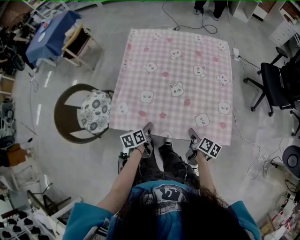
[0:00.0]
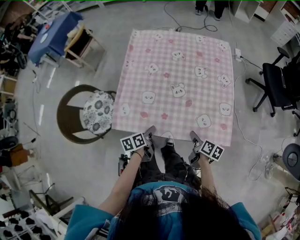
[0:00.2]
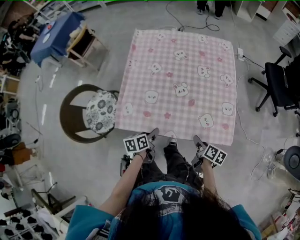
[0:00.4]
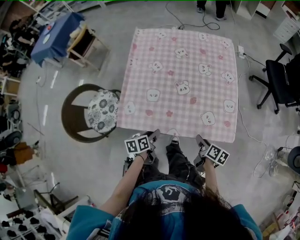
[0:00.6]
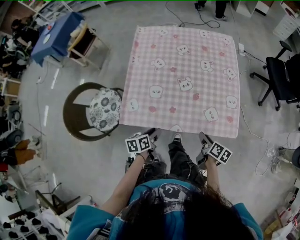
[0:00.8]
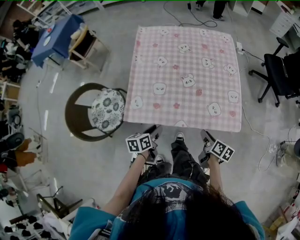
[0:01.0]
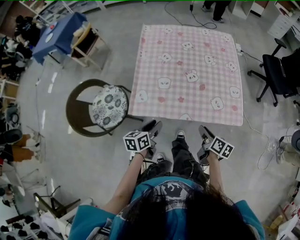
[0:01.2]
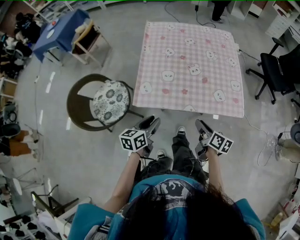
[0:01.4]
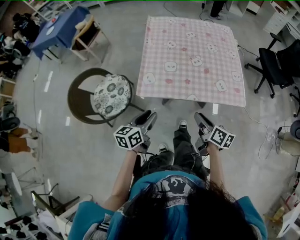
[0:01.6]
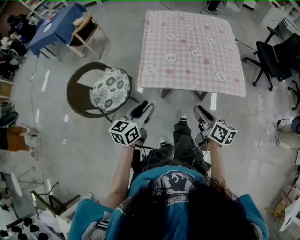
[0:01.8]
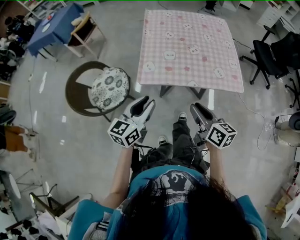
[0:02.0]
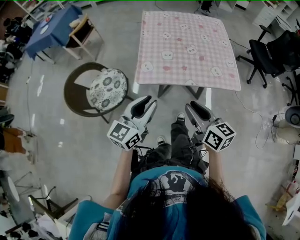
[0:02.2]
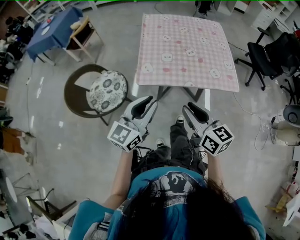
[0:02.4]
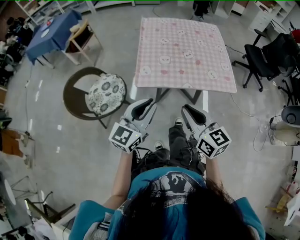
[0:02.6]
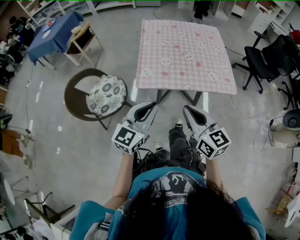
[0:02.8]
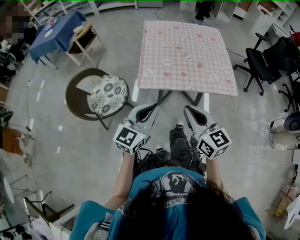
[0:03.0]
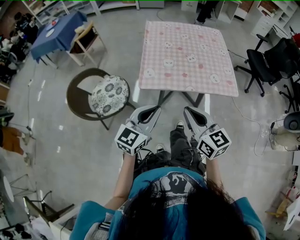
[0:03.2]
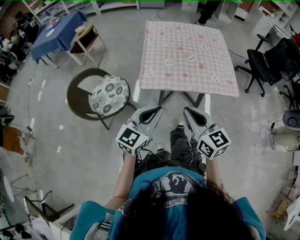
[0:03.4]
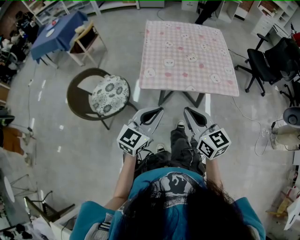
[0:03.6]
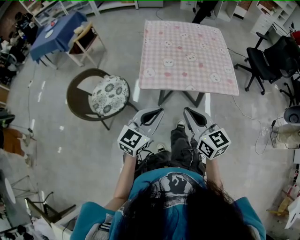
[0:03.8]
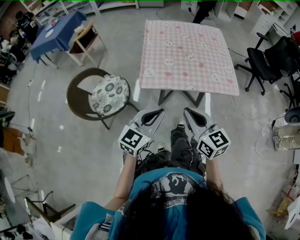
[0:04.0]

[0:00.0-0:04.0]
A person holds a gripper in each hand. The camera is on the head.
0:00.0 to 0:01.4: The left gripper is displaced upward, backward and to the left by approximately 20 cm, swivels about 30 degrees, and opens up. Meanwhile the right gripper moves backward, to the left and upward, about 15 cm, and opens up.
0:01.4 to 0:02.6: The right gripper shifts approximately 25 cm upward, backward and to the left, rotates around the line of its fingers by roughly 40 degrees, counterclockwise from behind, and closes, while the left gripper travels upward and backward by about 20 cm, and rotates about 40 degrees.
0:02.6 to 0:04.0: There are only small adjustments of the grippers.

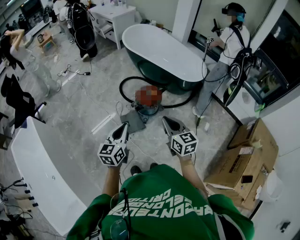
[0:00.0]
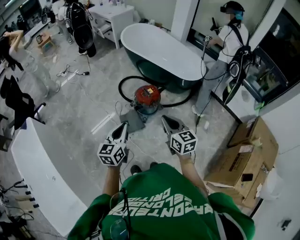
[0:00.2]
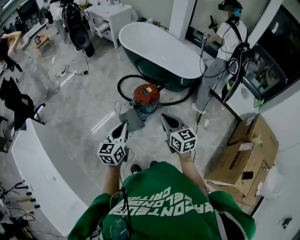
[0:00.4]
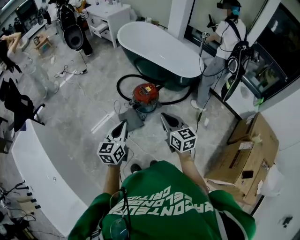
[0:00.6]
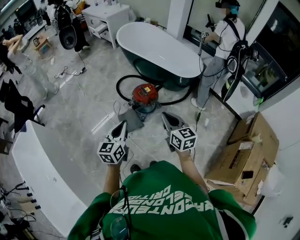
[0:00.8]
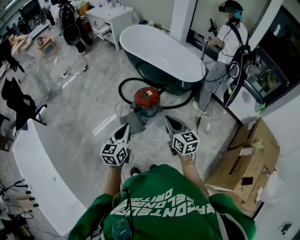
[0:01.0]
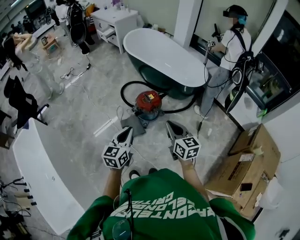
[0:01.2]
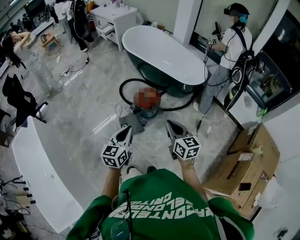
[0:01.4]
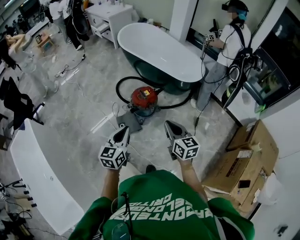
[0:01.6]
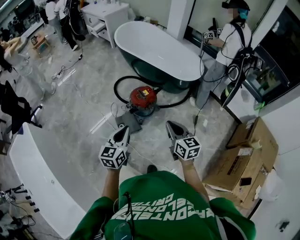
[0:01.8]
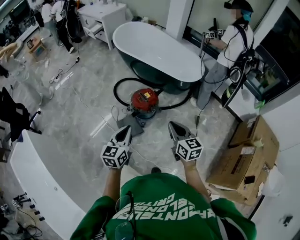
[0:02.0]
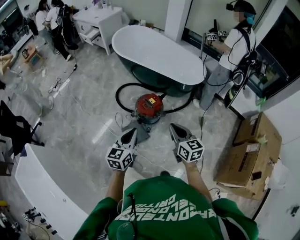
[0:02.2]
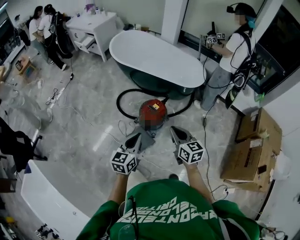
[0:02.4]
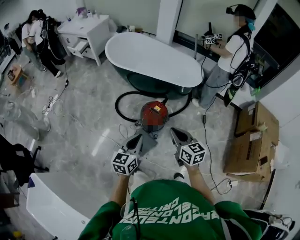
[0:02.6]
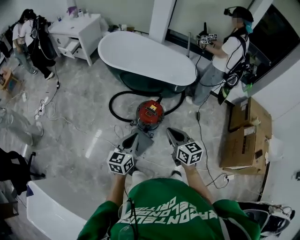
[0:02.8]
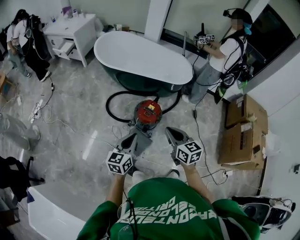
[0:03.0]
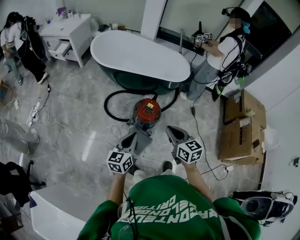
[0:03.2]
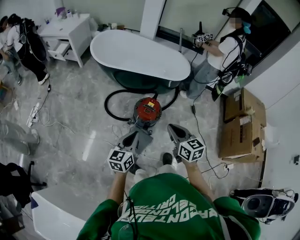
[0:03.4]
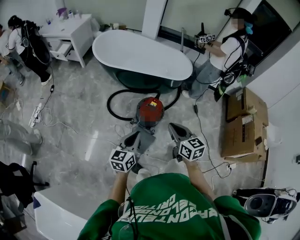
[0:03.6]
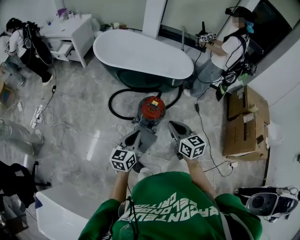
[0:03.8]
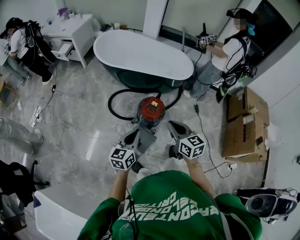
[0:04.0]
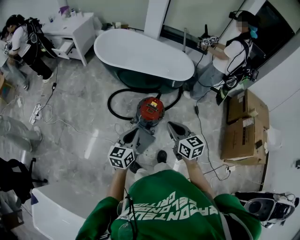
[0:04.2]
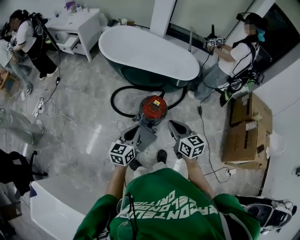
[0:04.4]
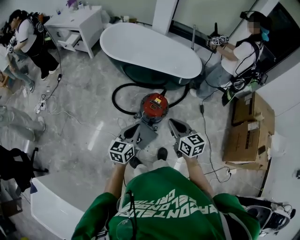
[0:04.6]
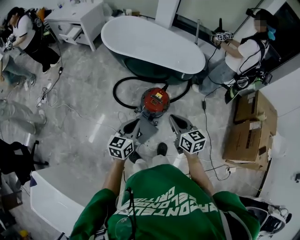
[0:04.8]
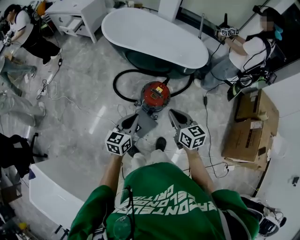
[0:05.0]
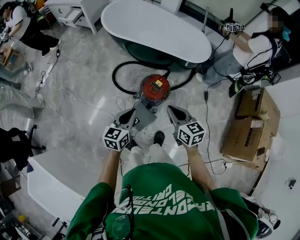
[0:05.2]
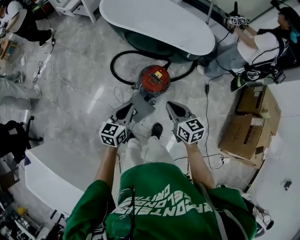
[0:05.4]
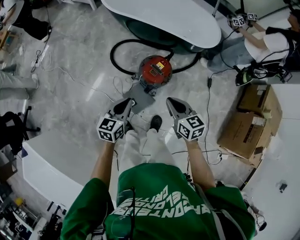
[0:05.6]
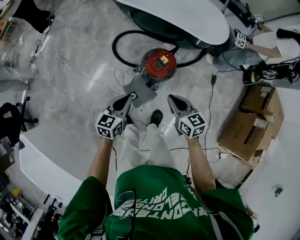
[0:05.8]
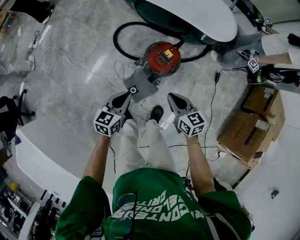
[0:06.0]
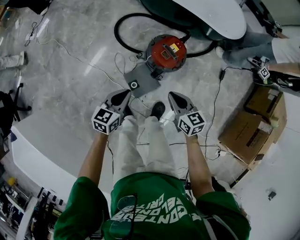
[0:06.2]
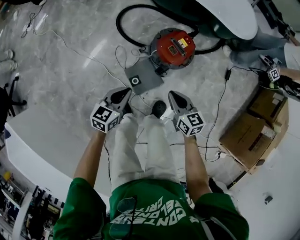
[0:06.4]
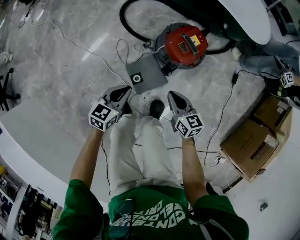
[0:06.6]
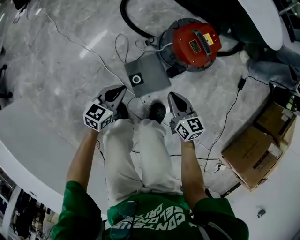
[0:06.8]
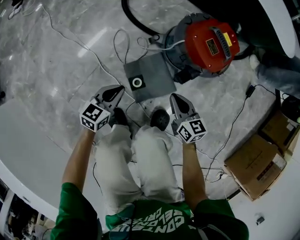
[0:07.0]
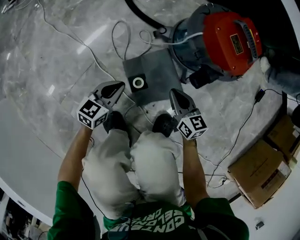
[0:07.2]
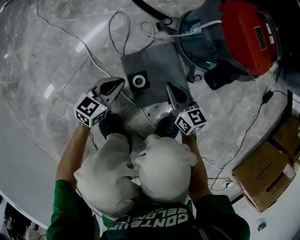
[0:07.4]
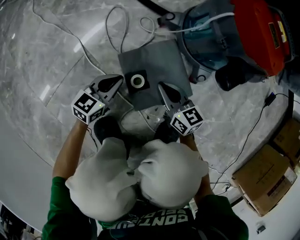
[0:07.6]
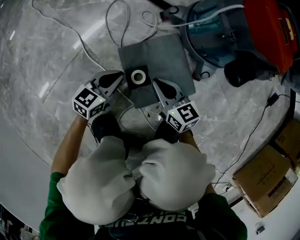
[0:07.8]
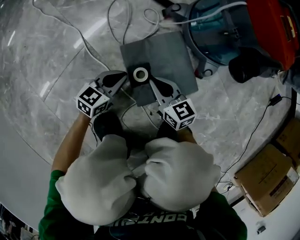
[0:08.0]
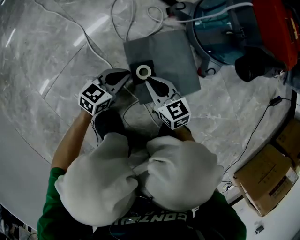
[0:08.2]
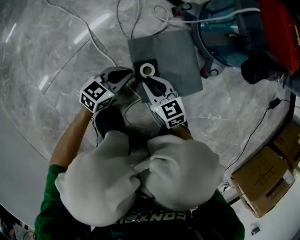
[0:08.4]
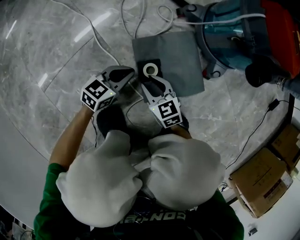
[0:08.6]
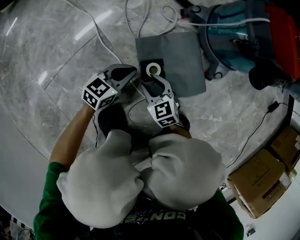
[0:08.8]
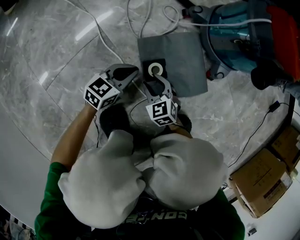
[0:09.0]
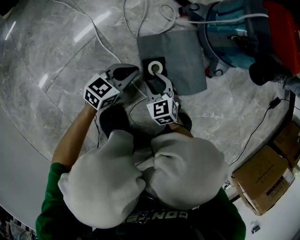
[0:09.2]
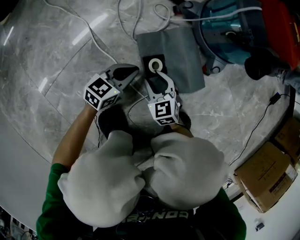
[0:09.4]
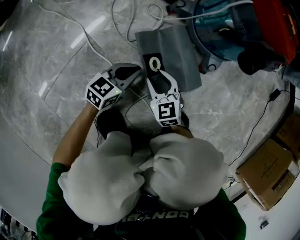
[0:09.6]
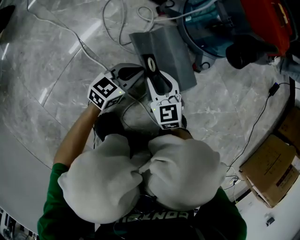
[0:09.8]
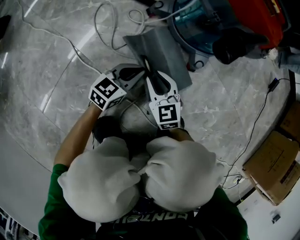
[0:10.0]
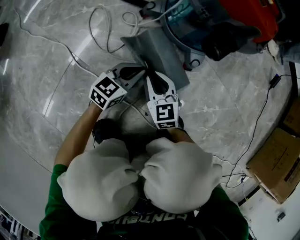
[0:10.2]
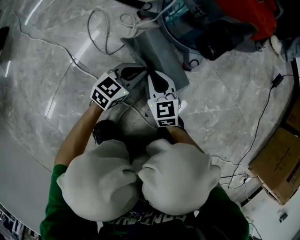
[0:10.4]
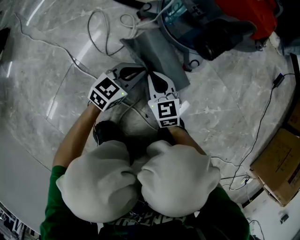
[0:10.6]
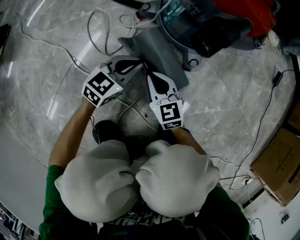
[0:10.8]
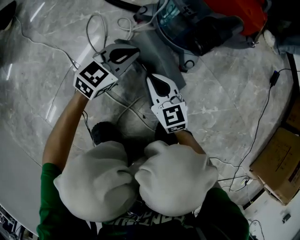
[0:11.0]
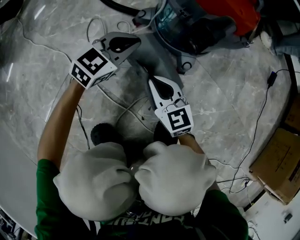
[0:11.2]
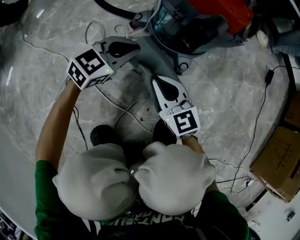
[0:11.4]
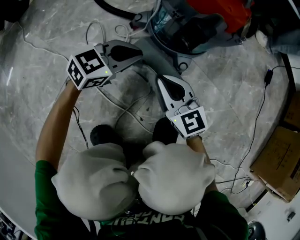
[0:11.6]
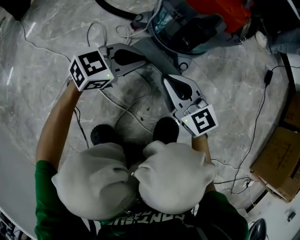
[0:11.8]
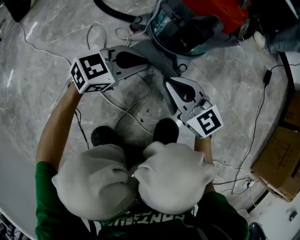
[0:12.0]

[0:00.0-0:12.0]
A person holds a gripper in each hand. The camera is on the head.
0:00.0 to 0:01.6: The grippers both shift to the right by about 5 cm.
0:01.6 to 0:03.0: The left gripper shifts by about 35 cm, and turns by approximately 30 degrees. Meanwhile the right gripper moves about 35 cm, and changes its angle by some 20 degrees.
0:03.0 to 0:04.4: The grippers move only a little.
0:04.4 to 0:06.0: Both grippers travel together downward, roughly 20 cm. The right gripper changes its angle by approximately 20 degrees.
0:06.0 to 0:07.6: Both grippers move downward, about 70 cm.
0:07.6 to 0:09.0: The left gripper travels downward by some 5 cm, while the right gripper shifts about 15 cm downward, to the left and backward, changes its angle by approximately 40 degrees, and opens.
0:09.0 to 0:10.4: The left gripper travels to the right and forward by roughly 15 cm; the right gripper is displaced forward, to the right and upward by some 15 cm, turns by roughly 30 degrees, and closes up.
0:10.4 to 0:12.0: The grippers both shift upward by some 15 cm. The left gripper turns by some 20 degrees, while the right gripper swivels some 30 degrees.

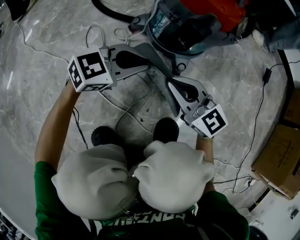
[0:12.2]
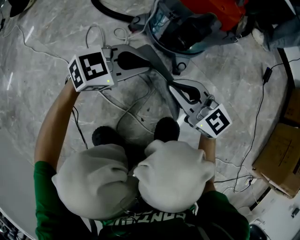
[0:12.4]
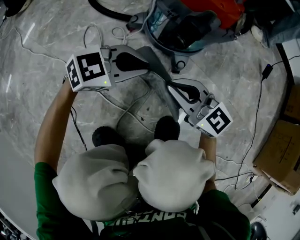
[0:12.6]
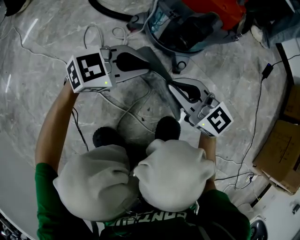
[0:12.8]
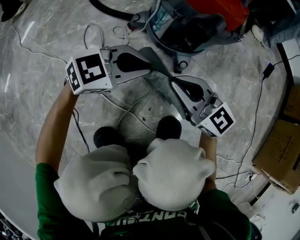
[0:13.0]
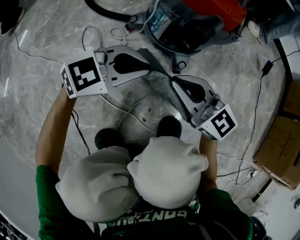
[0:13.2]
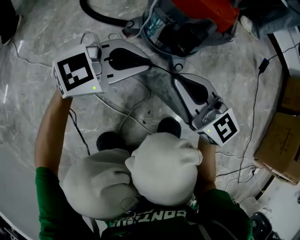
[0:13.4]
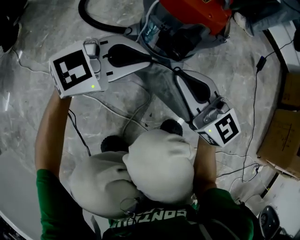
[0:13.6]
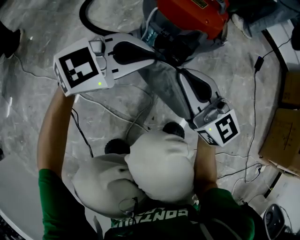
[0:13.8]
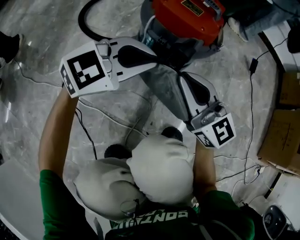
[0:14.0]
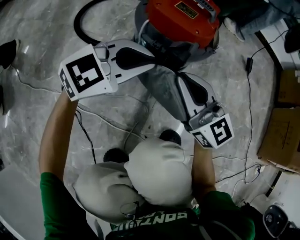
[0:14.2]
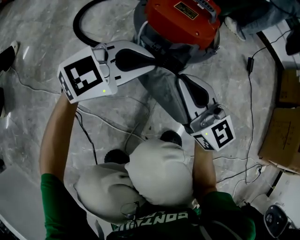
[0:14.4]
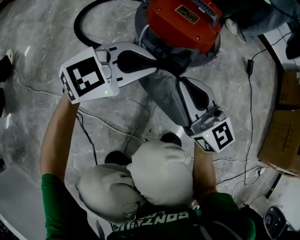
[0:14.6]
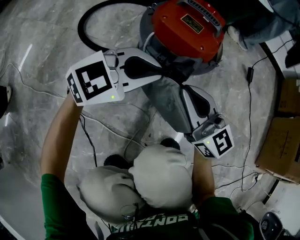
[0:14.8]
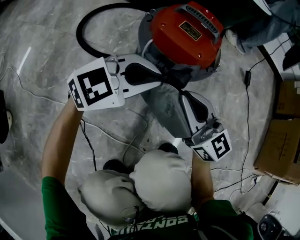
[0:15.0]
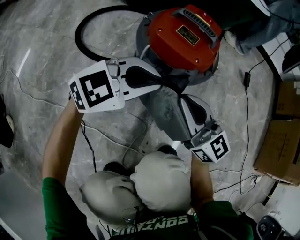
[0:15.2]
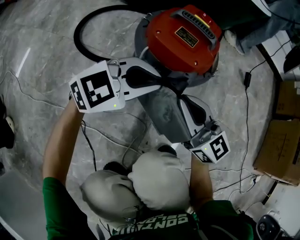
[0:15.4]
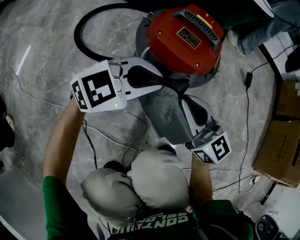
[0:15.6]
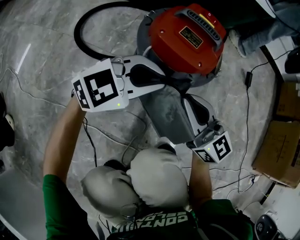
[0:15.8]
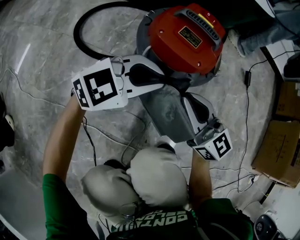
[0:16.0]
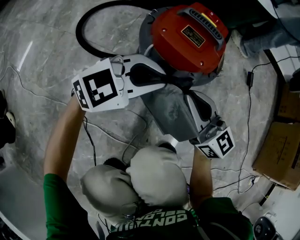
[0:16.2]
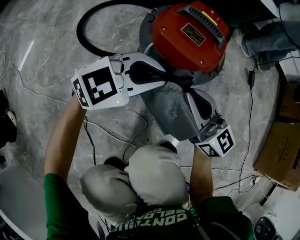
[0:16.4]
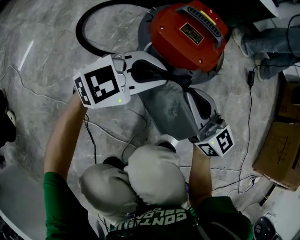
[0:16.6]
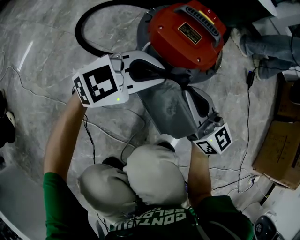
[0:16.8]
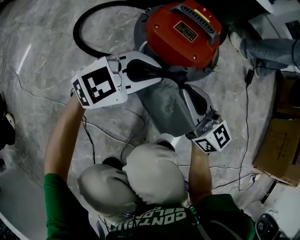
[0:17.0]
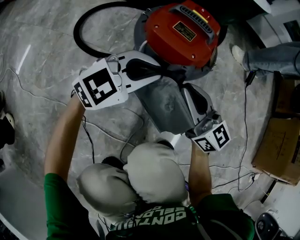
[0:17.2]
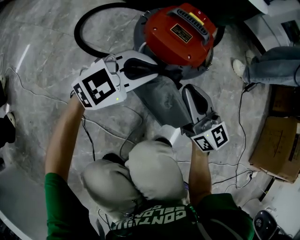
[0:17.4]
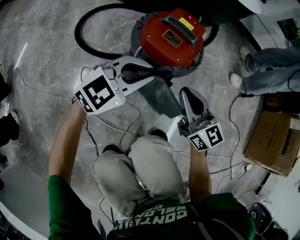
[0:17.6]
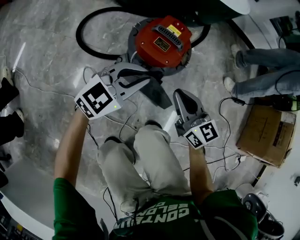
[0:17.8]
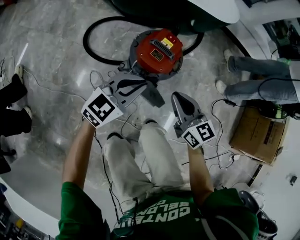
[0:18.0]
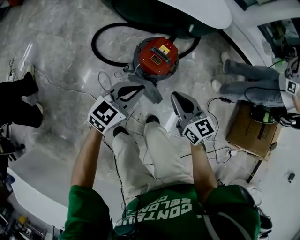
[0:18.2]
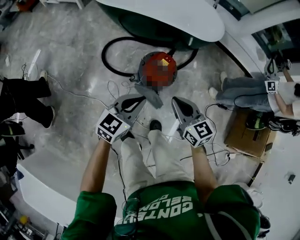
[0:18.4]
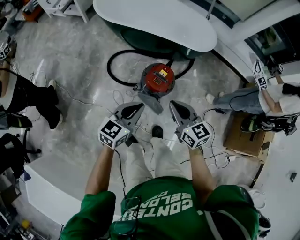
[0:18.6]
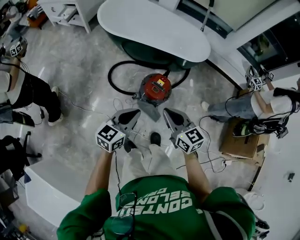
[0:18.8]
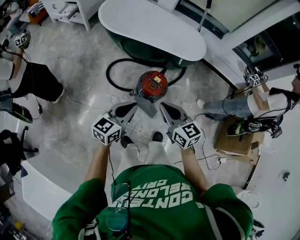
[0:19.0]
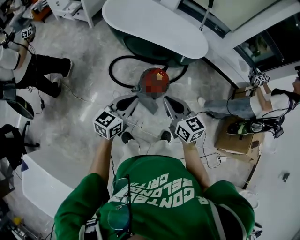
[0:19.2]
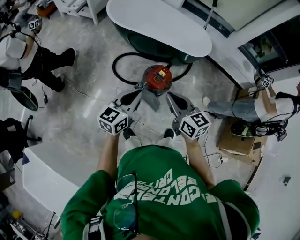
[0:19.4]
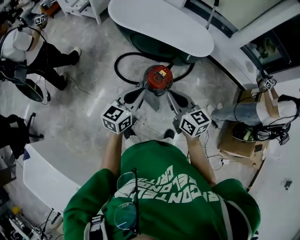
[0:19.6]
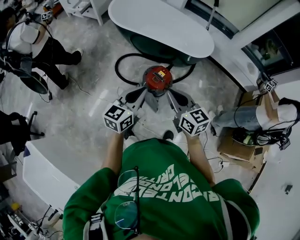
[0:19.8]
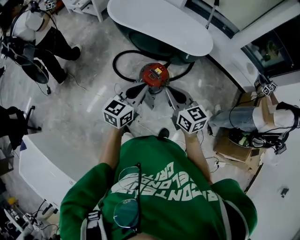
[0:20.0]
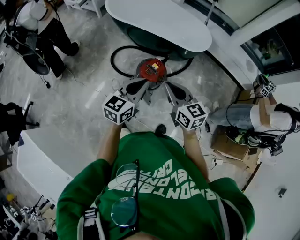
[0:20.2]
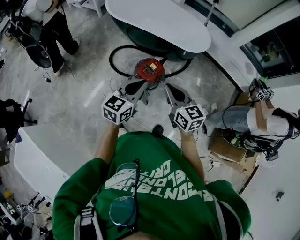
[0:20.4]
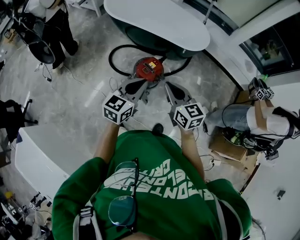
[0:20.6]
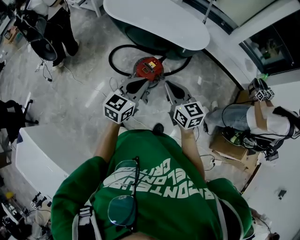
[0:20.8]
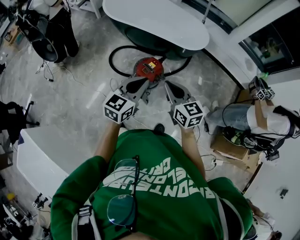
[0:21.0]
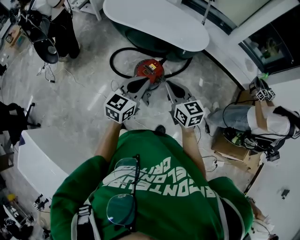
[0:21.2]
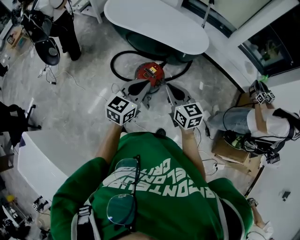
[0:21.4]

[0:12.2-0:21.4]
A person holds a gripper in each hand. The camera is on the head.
0:12.2 to 0:13.8: The grippers both shift upward by some 10 cm.
0:13.8 to 0:15.2: The two grippers go roughly 5 cm forward.
0:15.2 to 0:16.8: There are only small adjustments of the grippers.
0:16.8 to 0:18.4: Both grippers travel together upward, approximately 50 cm. The left gripper changes its angle by some 40 degrees; the right gripper rotates approximately 30 degrees.
0:18.4 to 0:19.8: The grippers both shift upward by about 25 cm. The left gripper rotates some 20 degrees.
0:19.8 to 0:21.4: The two grippers go roughly 10 cm to the right.
